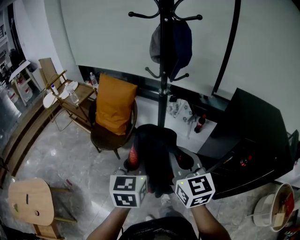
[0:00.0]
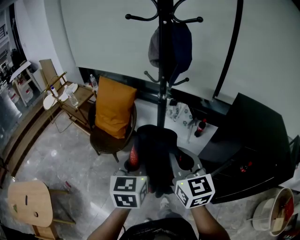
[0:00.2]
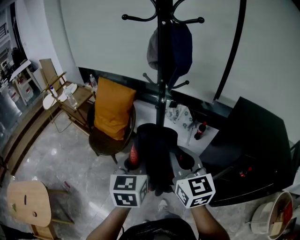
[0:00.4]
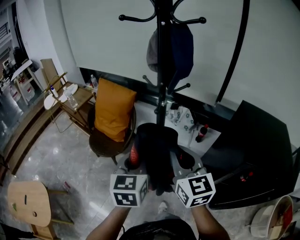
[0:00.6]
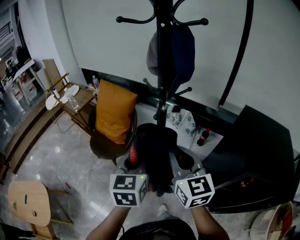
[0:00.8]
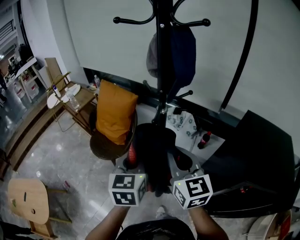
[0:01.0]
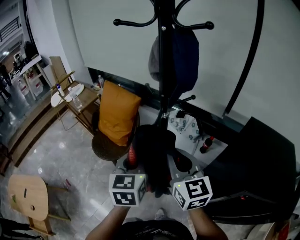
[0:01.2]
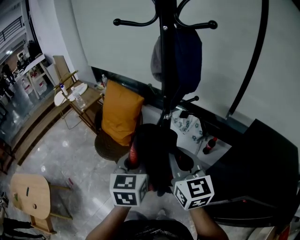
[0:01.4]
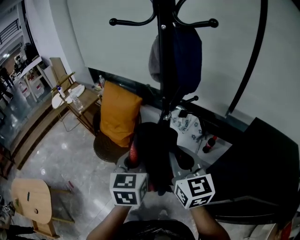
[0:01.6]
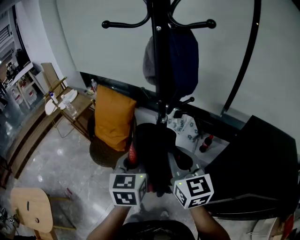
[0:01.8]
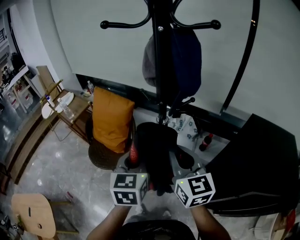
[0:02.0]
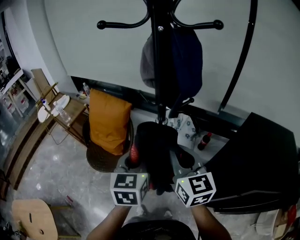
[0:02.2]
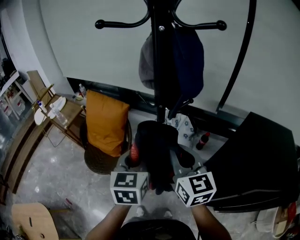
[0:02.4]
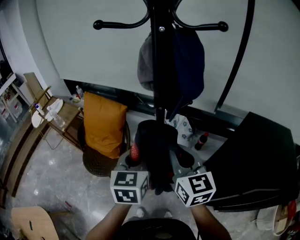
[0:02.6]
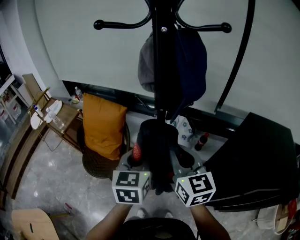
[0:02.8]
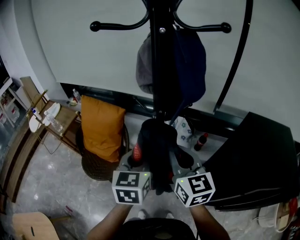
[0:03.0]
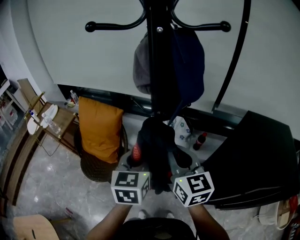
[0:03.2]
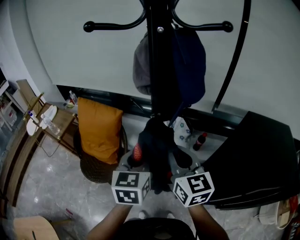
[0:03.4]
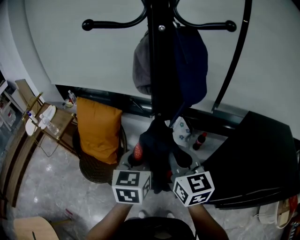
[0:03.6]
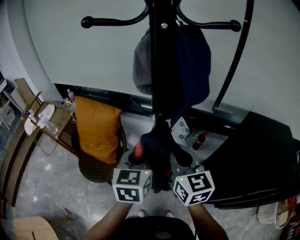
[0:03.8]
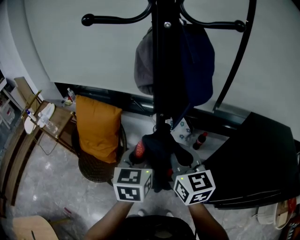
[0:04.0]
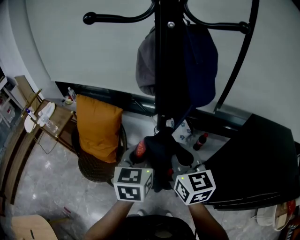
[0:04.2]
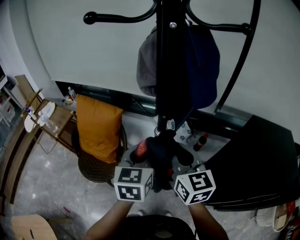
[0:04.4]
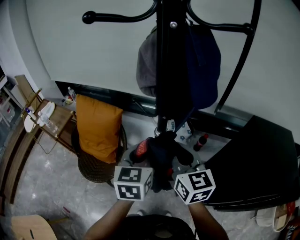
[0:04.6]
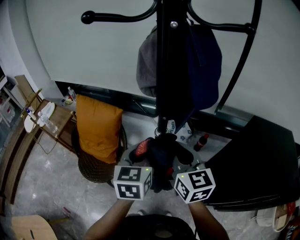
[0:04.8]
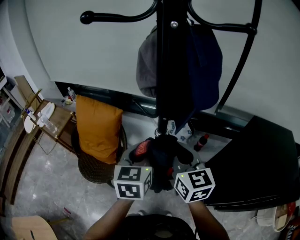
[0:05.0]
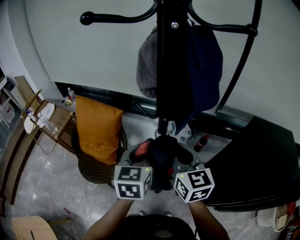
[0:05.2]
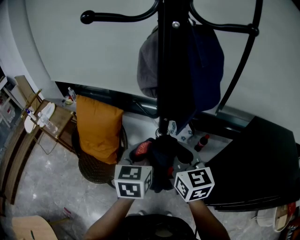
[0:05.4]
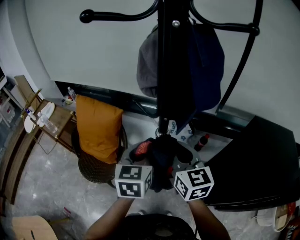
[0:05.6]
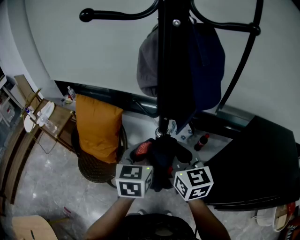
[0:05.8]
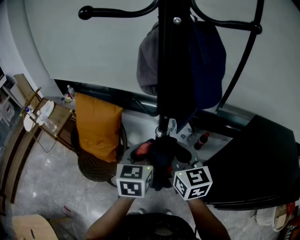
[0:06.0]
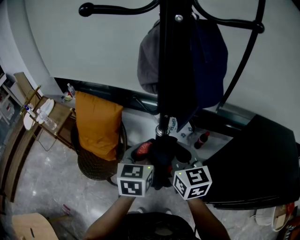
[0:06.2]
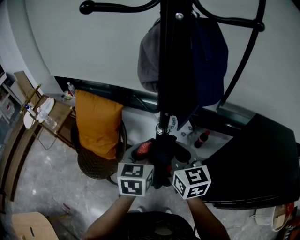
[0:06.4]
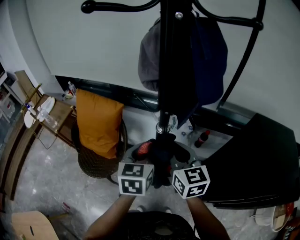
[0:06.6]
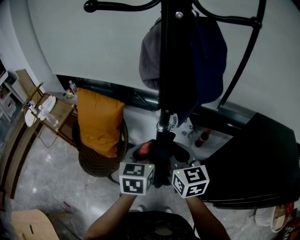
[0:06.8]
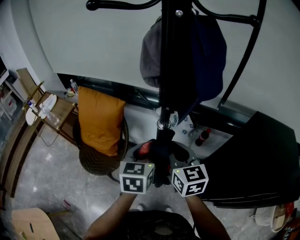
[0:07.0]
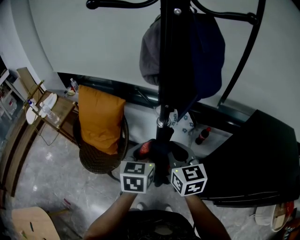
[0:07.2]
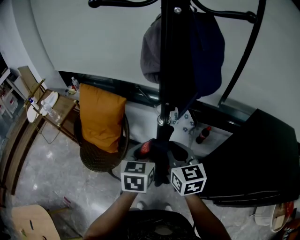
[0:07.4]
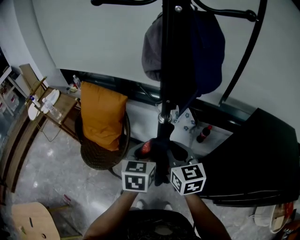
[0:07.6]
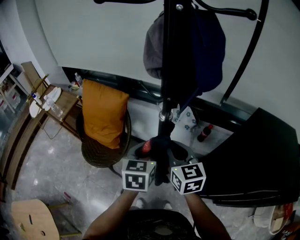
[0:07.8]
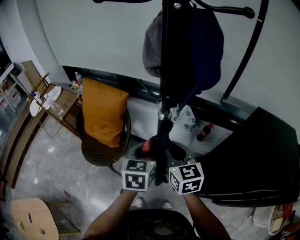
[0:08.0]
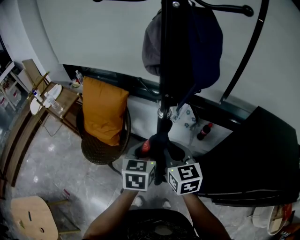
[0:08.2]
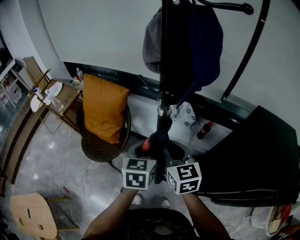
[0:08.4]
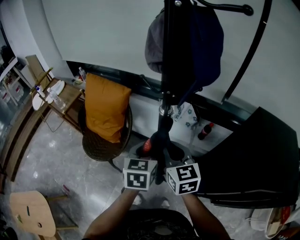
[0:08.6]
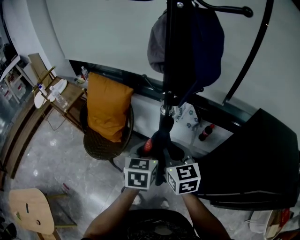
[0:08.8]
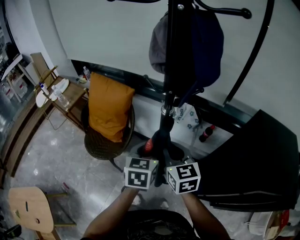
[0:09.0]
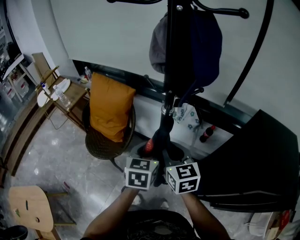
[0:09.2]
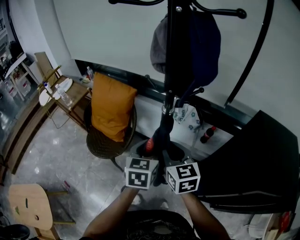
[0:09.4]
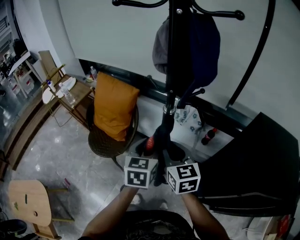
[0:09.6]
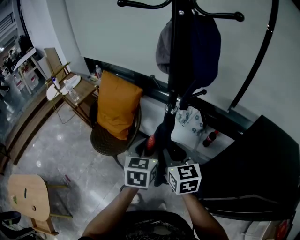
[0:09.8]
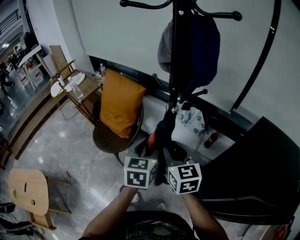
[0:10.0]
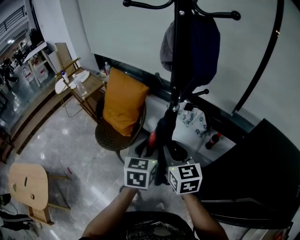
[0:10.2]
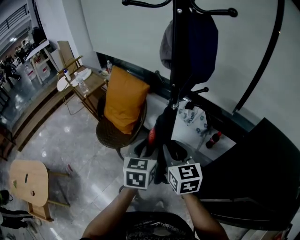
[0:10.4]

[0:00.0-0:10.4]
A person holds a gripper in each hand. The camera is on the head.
0:00.0 to 0:01.4: The grippers both shift forward by about 15 cm.
0:01.4 to 0:03.0: The grippers both shift forward by about 10 cm.
0:03.0 to 0:04.4: There are only small adjustments of the grippers.
0:04.4 to 0:06.0: There are only small adjustments of the grippers.
0:06.0 to 0:07.4: The left gripper shifts by approximately 5 cm. Meanwhile the right gripper changes place by some 5 cm.
0:07.4 to 0:09.0: The grippers move only a little.
0:09.0 to 0:10.4: The right gripper ends up some 5 cm from where it was, while the left gripper travels backward by roughly 5 cm, and opens.

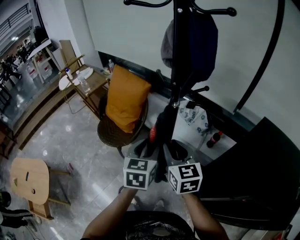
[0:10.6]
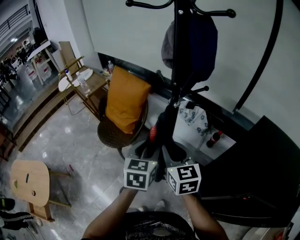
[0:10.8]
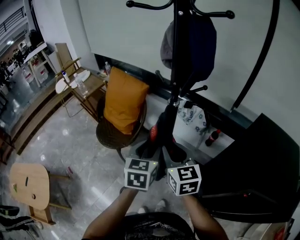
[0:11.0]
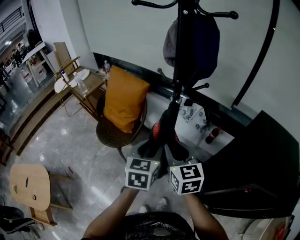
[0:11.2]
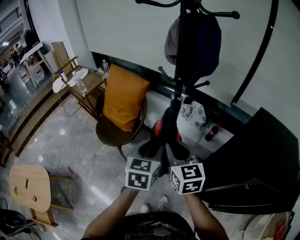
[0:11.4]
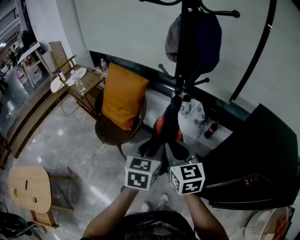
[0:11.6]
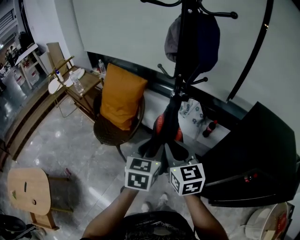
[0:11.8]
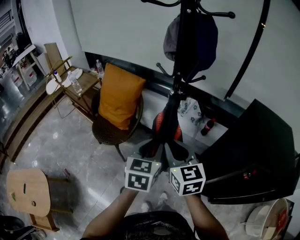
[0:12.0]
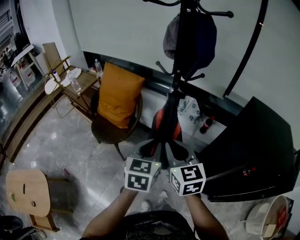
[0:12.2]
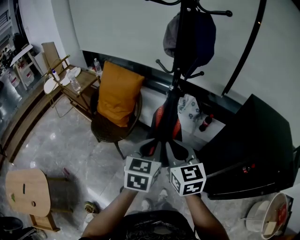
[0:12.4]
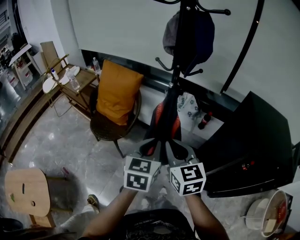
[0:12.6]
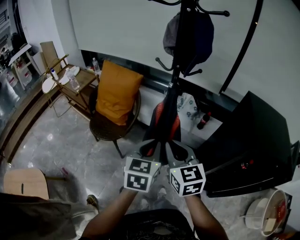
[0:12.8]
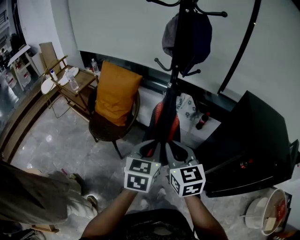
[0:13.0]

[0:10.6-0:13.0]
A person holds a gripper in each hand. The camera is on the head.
0:10.6 to 0:11.8: The two grippers go about 5 cm backward.
0:11.8 to 0:13.0: Both grippers move backward, roughly 5 cm. The left gripper closes.

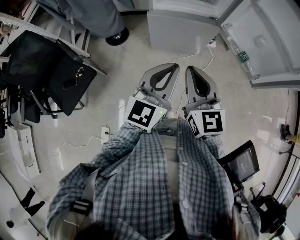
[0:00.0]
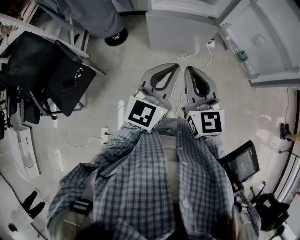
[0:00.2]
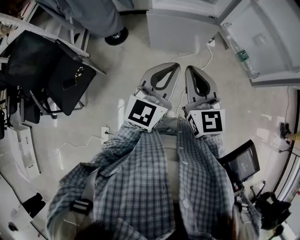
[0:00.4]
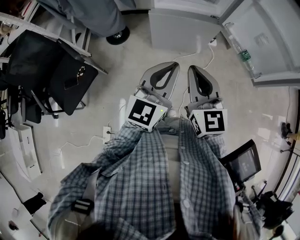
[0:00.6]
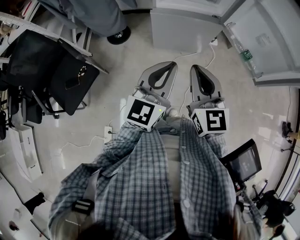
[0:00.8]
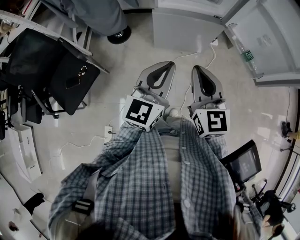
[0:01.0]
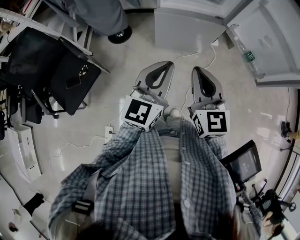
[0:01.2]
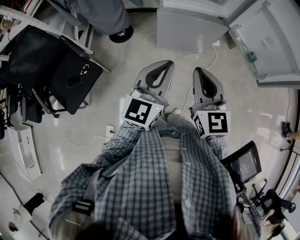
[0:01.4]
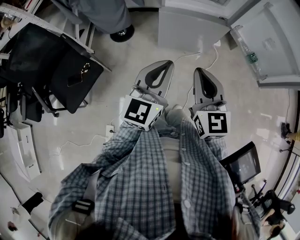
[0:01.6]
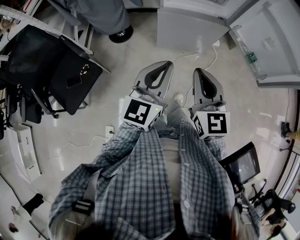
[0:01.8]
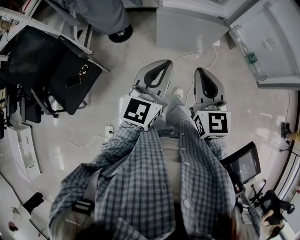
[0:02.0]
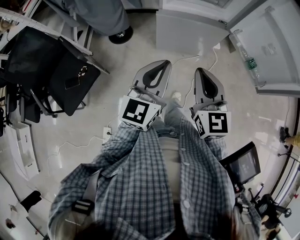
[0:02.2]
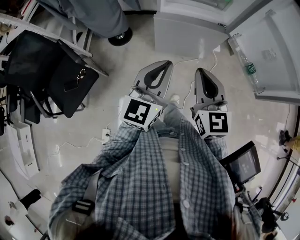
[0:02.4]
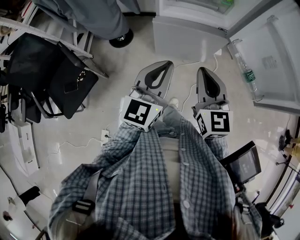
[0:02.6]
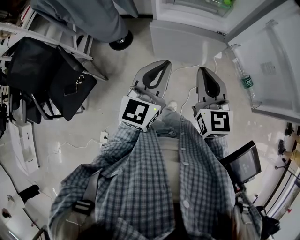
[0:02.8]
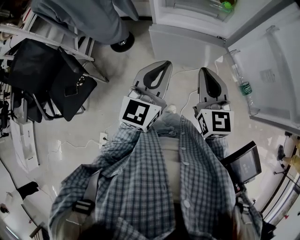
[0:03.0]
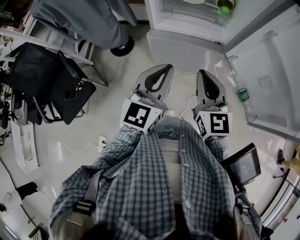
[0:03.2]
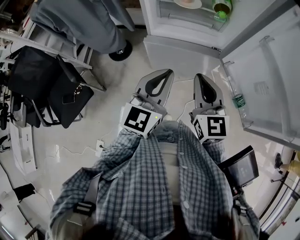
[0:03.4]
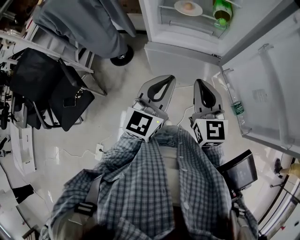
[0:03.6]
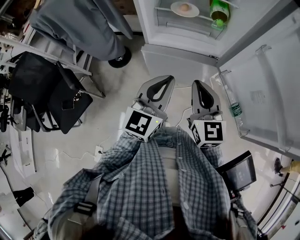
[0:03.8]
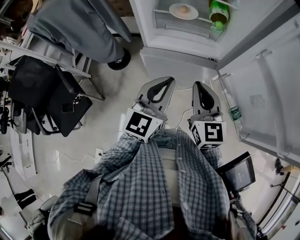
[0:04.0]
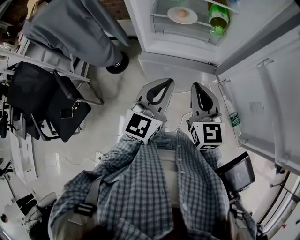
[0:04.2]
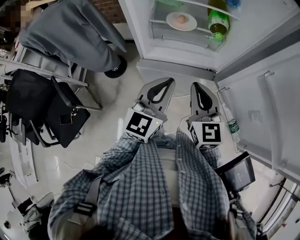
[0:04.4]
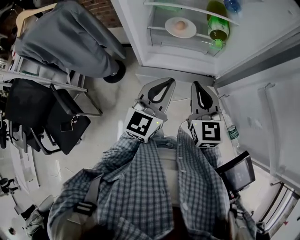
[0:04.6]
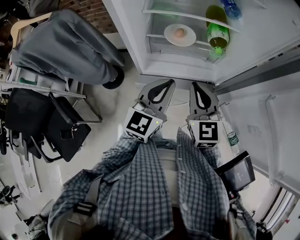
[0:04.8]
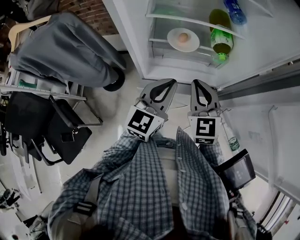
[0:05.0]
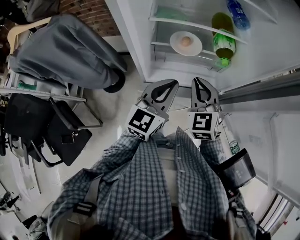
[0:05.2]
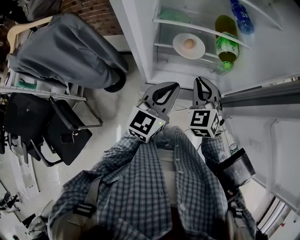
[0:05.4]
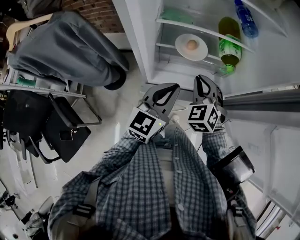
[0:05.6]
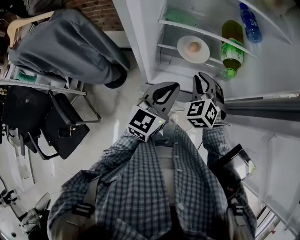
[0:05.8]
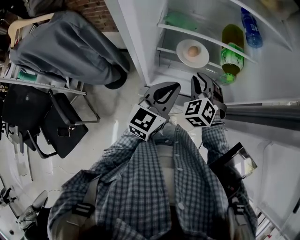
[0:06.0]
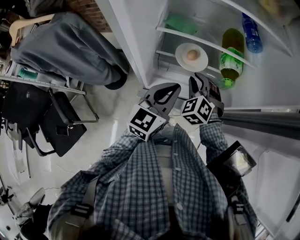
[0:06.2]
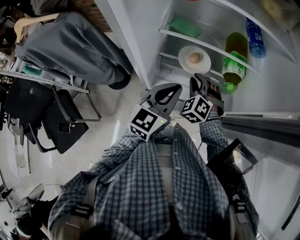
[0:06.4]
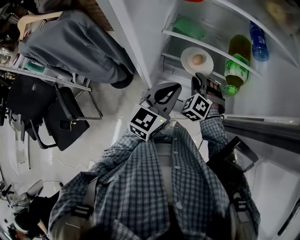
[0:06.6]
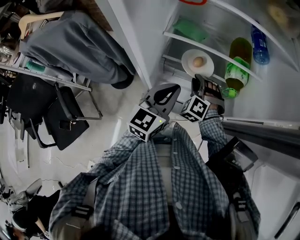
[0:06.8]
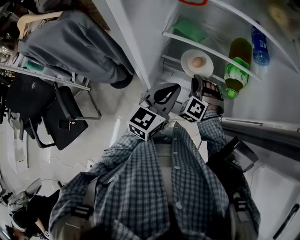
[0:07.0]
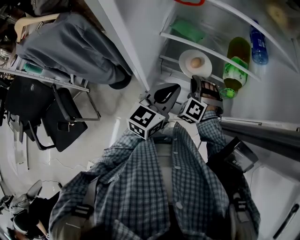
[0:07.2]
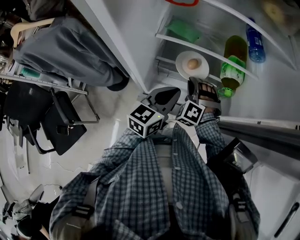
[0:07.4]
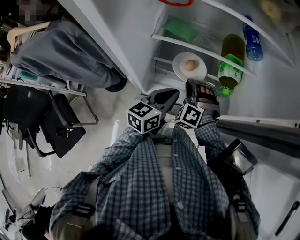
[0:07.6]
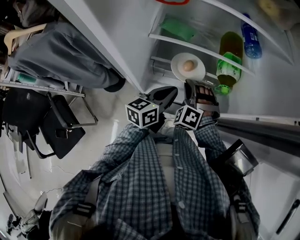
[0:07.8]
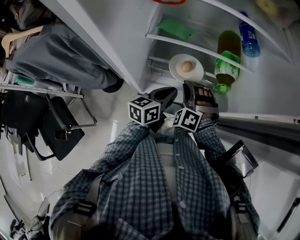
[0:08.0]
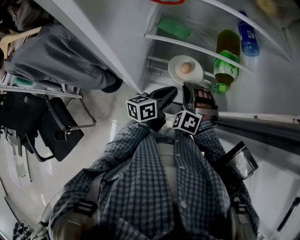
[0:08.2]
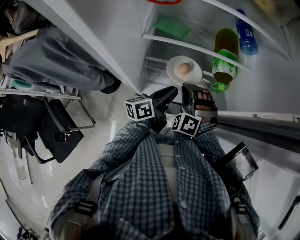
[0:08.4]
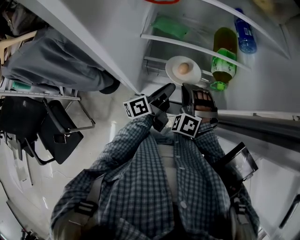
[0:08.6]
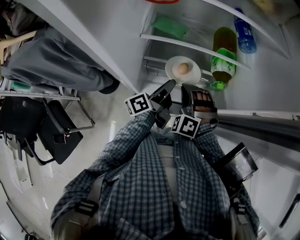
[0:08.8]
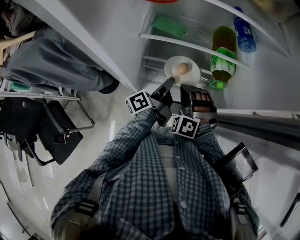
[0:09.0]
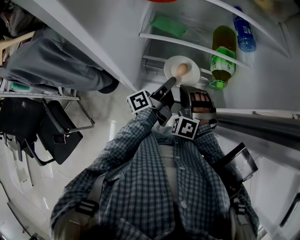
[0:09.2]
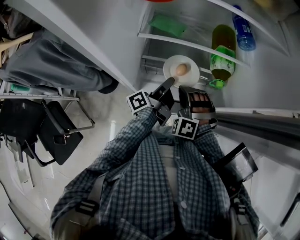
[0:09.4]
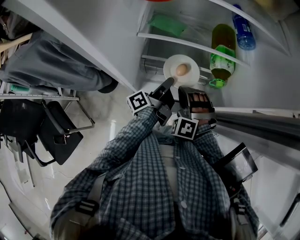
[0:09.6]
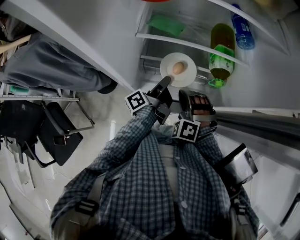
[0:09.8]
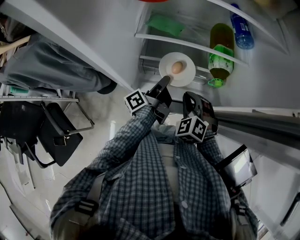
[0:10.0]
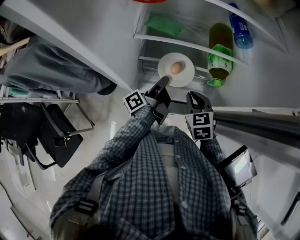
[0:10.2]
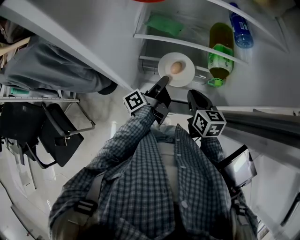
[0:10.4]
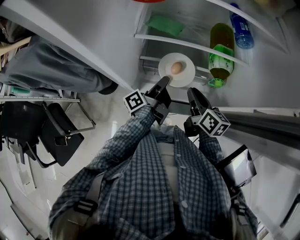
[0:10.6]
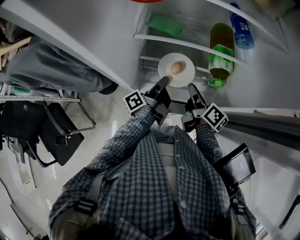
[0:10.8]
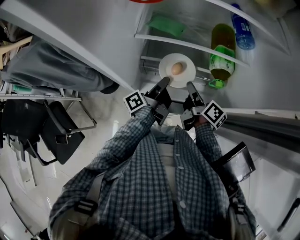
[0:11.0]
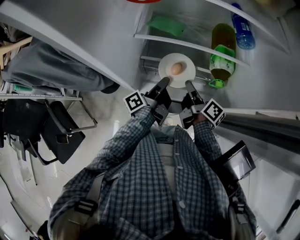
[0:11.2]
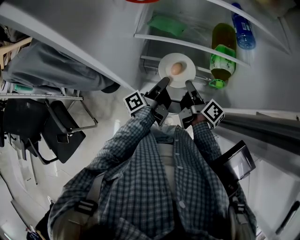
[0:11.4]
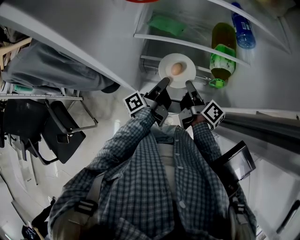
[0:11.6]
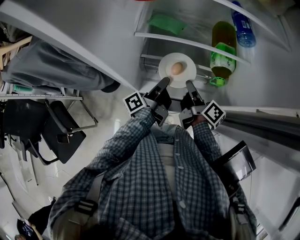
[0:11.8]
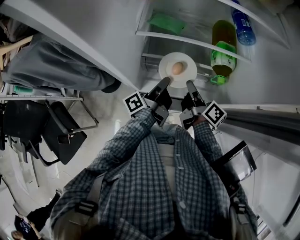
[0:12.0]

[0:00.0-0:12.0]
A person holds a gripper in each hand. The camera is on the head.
0:00.0 to 0:01.6: The right gripper is displaced to the left by about 5 cm. Meanwhile the left gripper moves to the left, roughly 10 cm.
0:01.6 to 0:03.0: The grippers both shift forward and to the right by some 20 cm.
0:03.0 to 0:04.4: Both grippers move forward, about 15 cm.
0:04.4 to 0:06.0: Both grippers move forward, approximately 20 cm. The right gripper rotates around the line of its fingers by some 40 degrees, counterclockwise from behind.
0:06.0 to 0:07.6: The right gripper changes place by roughly 5 cm, and changes its angle by about 30 degrees. The left gripper is displaced downward and forward by approximately 10 cm, and turns by about 20 degrees.
0:07.6 to 0:09.0: The left gripper heads forward, covering approximately 5 cm, and twists some 50 degrees counterclockwise, seen from behind.
0:09.0 to 0:10.4: The right gripper goes about 5 cm to the right, and rotates around the line of its fingers by some 90 degrees, clockwise from behind.
0:10.4 to 0:12.0: The right gripper rolls clockwise, seen from behind, by roughly 50 degrees.
